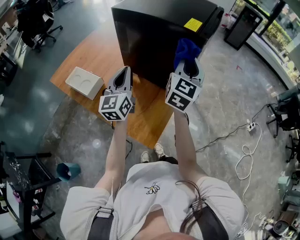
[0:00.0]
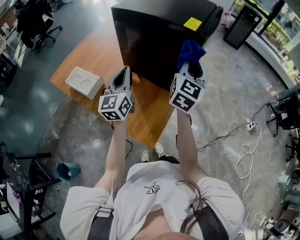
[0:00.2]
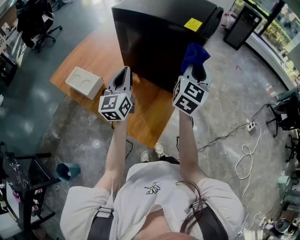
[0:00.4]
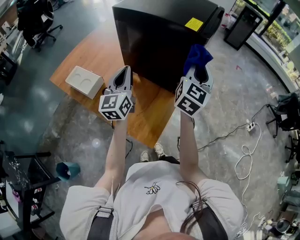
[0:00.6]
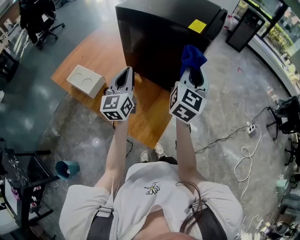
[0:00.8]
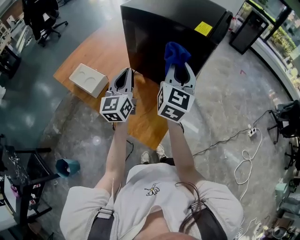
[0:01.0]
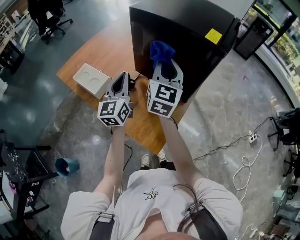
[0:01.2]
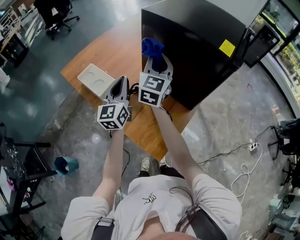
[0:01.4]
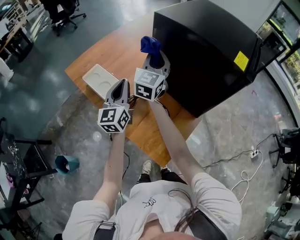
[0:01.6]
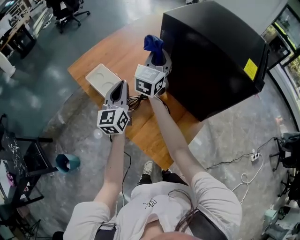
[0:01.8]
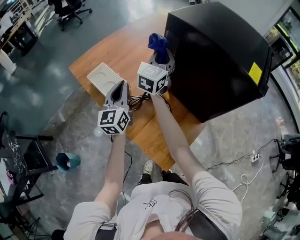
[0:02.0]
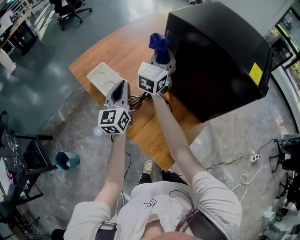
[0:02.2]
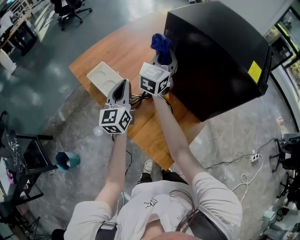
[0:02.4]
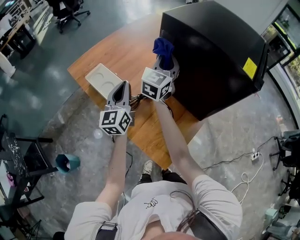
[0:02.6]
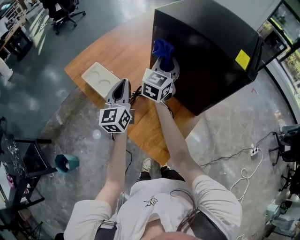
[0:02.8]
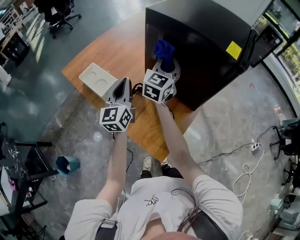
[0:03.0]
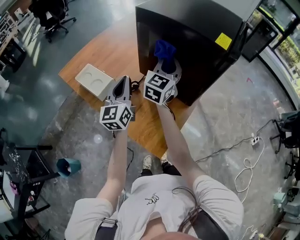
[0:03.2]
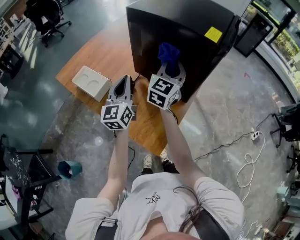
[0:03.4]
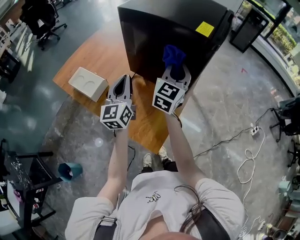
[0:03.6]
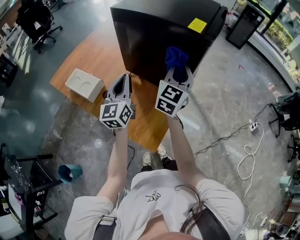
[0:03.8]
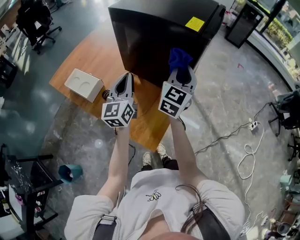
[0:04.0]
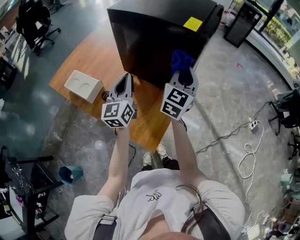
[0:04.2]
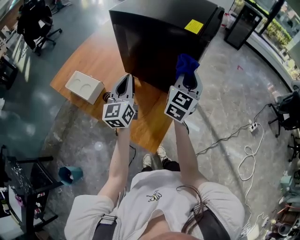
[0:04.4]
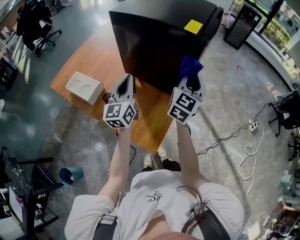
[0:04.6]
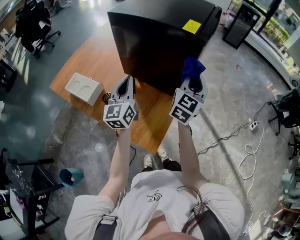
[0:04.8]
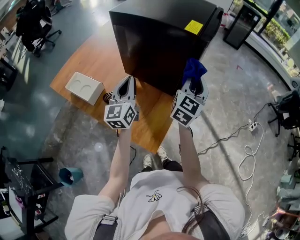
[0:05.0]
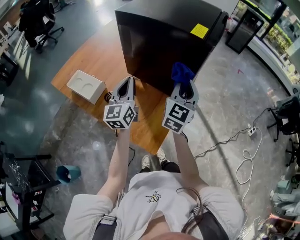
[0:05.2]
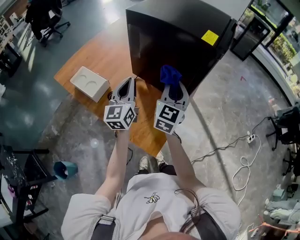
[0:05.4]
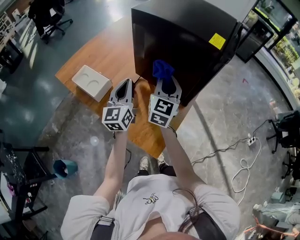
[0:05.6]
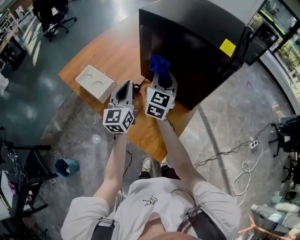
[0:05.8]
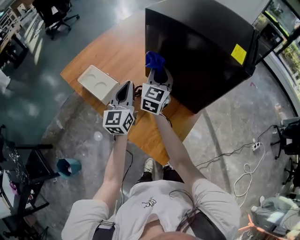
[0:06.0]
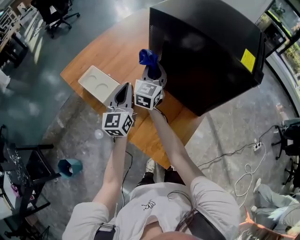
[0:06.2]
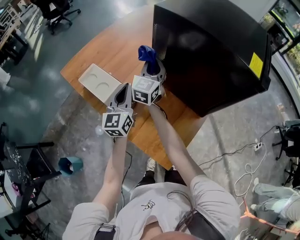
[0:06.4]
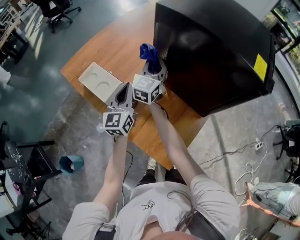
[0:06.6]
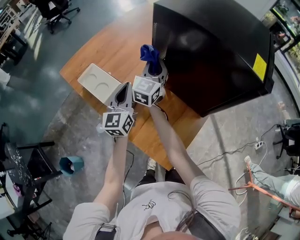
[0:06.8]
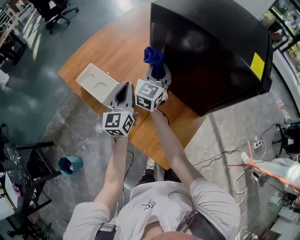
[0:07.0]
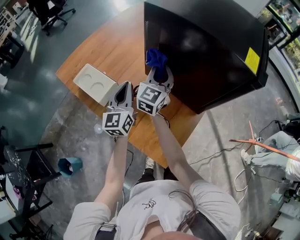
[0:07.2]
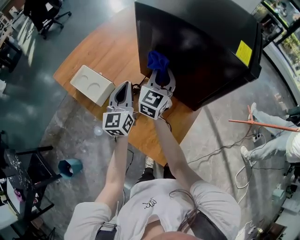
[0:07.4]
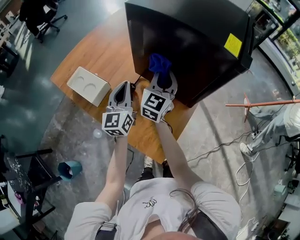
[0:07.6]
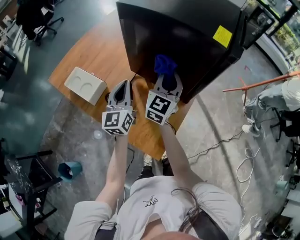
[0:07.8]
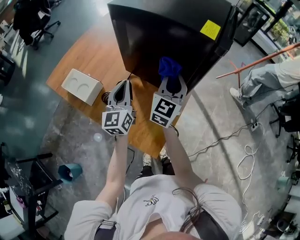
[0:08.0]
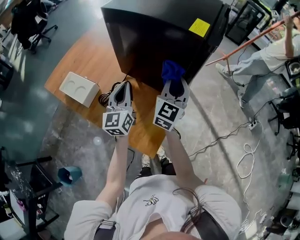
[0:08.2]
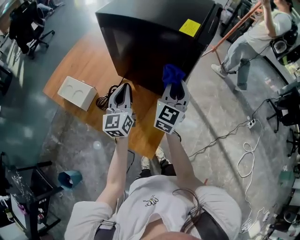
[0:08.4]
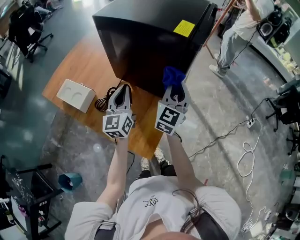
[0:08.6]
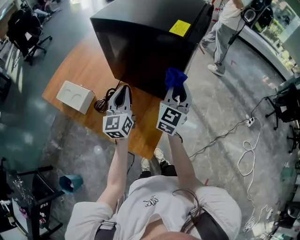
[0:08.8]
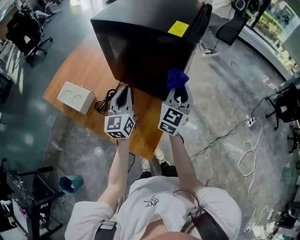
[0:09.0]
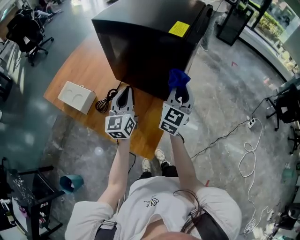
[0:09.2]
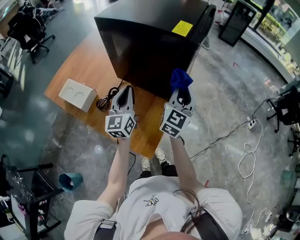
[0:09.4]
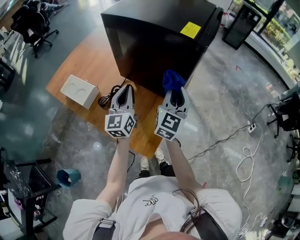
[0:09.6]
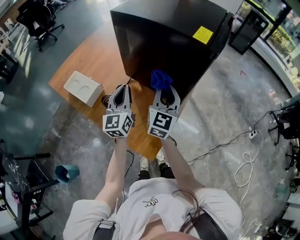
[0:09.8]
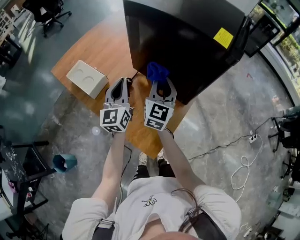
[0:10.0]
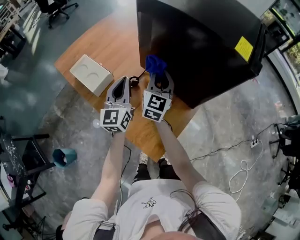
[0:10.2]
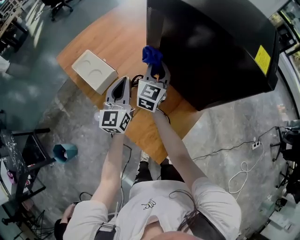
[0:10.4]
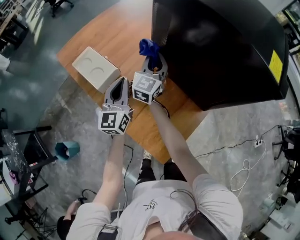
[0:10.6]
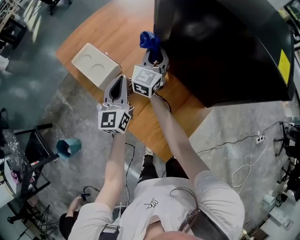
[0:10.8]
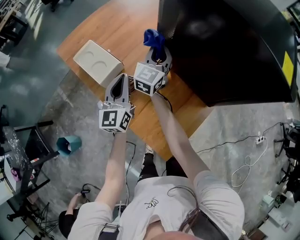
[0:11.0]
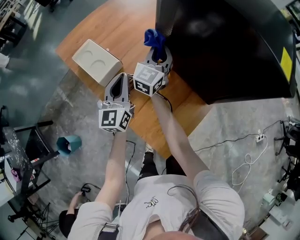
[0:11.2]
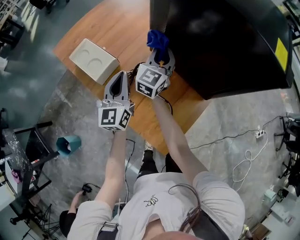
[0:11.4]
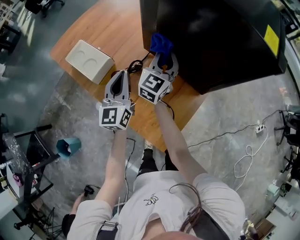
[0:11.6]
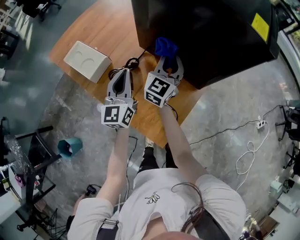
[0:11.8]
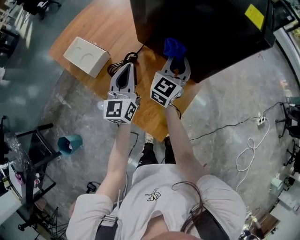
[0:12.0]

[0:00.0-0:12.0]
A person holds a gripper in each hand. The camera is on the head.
0:00.0 to 0:01.6: The left gripper heads to the left, covering about 15 cm; the right gripper shifts roughly 30 cm to the left.
0:01.6 to 0:03.0: The right gripper is displaced to the right by roughly 10 cm.
0:03.0 to 0:04.4: The right gripper shifts about 20 cm to the right. The left gripper travels to the right by roughly 10 cm.
0:04.4 to 0:06.0: The right gripper travels to the left by roughly 25 cm, and turns by about 20 degrees. The left gripper shifts approximately 10 cm to the left.
0:06.0 to 0:07.6: The right gripper shifts roughly 5 cm to the right.
0:07.6 to 0:09.0: The left gripper travels to the right by roughly 10 cm, while the right gripper goes about 20 cm to the right.
0:09.0 to 0:10.4: The left gripper moves to the left, some 15 cm, while the right gripper shifts approximately 30 cm to the left, and swivels about 20 degrees.
0:10.4 to 0:12.0: The left gripper travels to the right by some 5 cm, while the right gripper is displaced to the right and backward by approximately 15 cm.

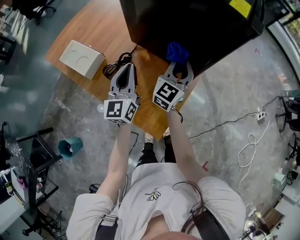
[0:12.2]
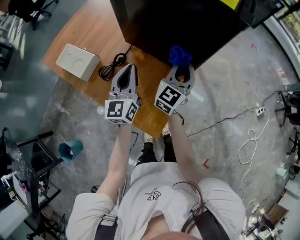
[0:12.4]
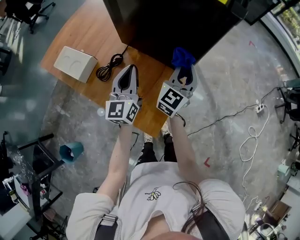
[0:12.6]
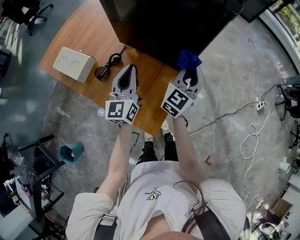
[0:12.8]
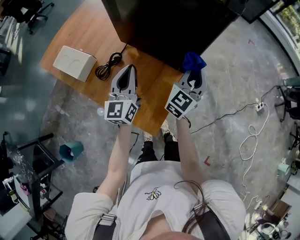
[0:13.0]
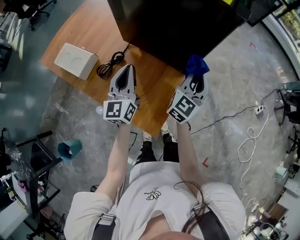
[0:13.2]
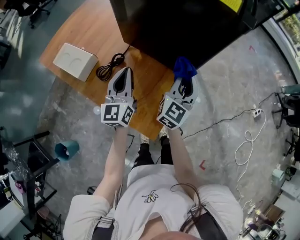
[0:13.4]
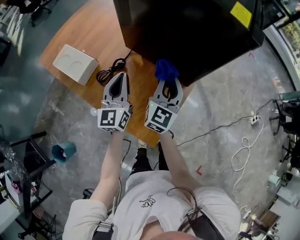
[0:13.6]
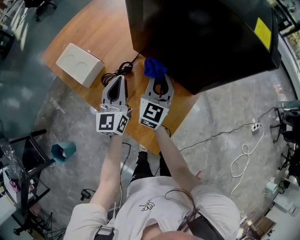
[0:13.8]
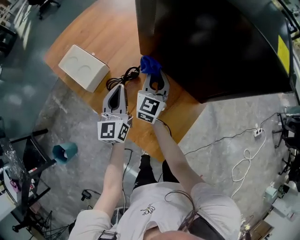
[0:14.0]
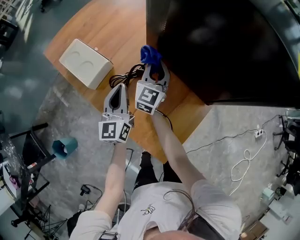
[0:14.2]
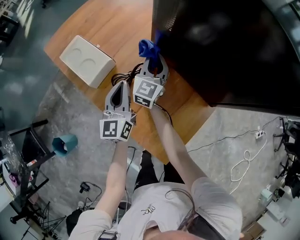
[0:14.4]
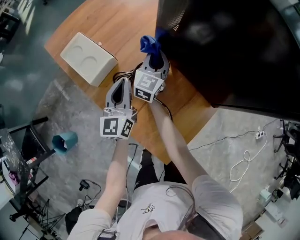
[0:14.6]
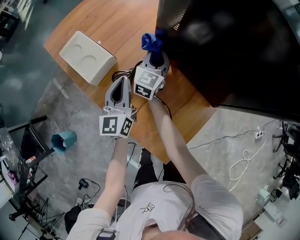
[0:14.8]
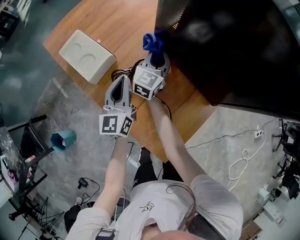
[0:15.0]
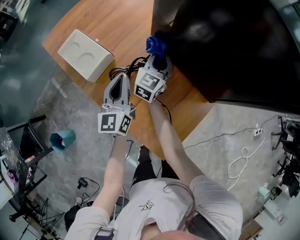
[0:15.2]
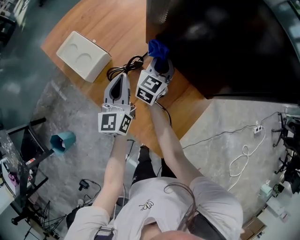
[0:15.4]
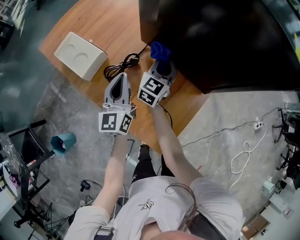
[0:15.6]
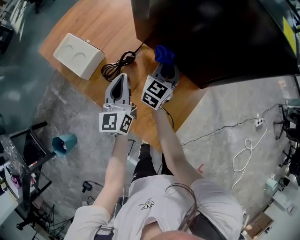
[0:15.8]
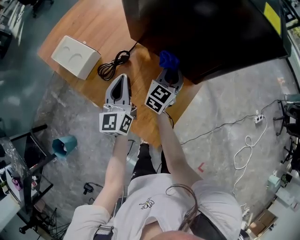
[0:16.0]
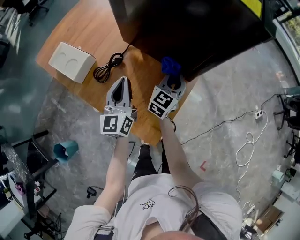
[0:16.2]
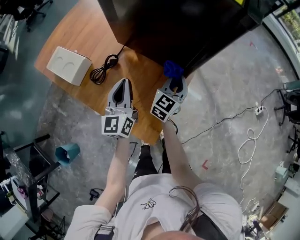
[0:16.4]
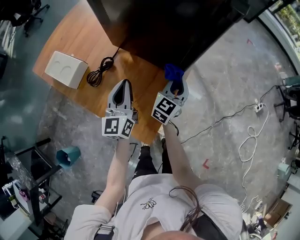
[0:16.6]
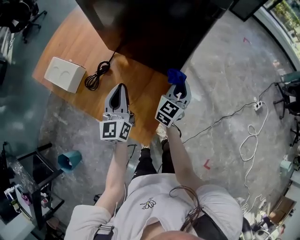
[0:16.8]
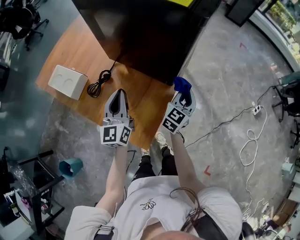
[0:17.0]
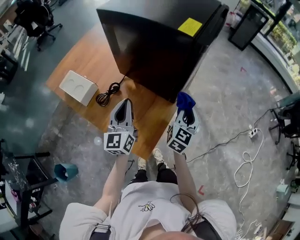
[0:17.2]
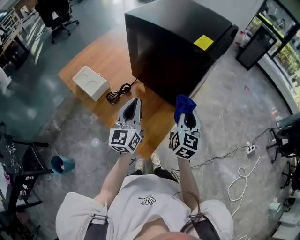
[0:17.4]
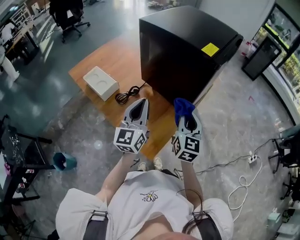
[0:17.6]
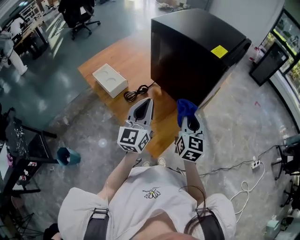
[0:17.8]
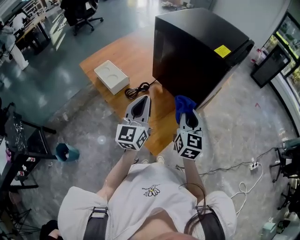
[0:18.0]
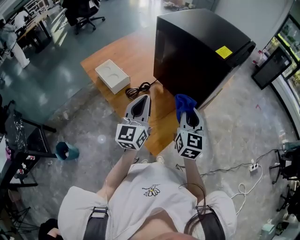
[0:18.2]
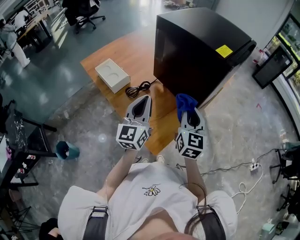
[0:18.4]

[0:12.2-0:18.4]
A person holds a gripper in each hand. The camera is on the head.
0:12.2 to 0:13.8: The left gripper ends up roughly 5 cm from where it was, while the right gripper goes about 10 cm to the left.
0:13.8 to 0:15.4: The right gripper travels forward and downward by about 10 cm.
0:15.4 to 0:16.8: The left gripper is displaced to the right by roughly 15 cm; the right gripper moves to the right, approximately 30 cm.
0:16.8 to 0:18.4: Both grippers travel together upward, some 15 cm. The right gripper turns by about 40 degrees.

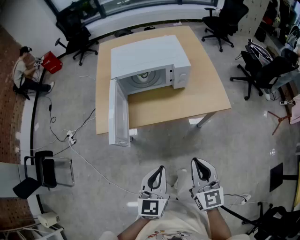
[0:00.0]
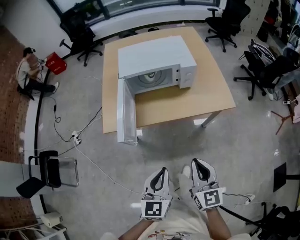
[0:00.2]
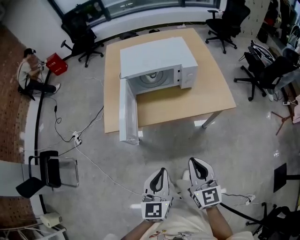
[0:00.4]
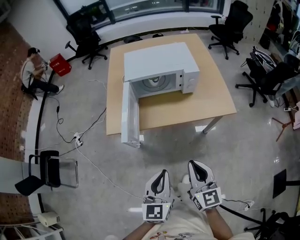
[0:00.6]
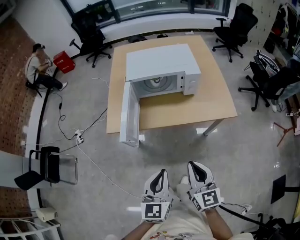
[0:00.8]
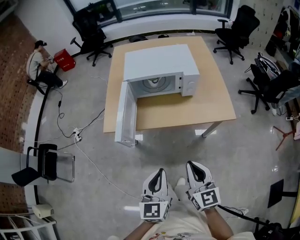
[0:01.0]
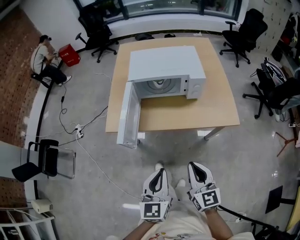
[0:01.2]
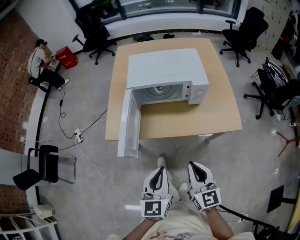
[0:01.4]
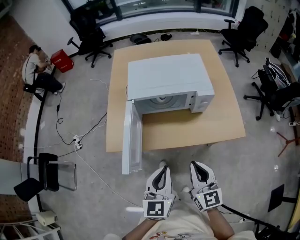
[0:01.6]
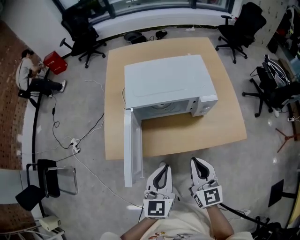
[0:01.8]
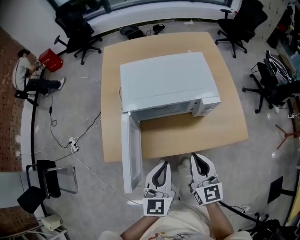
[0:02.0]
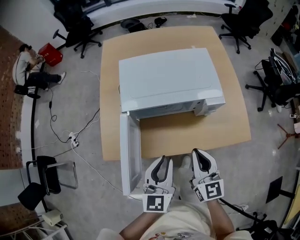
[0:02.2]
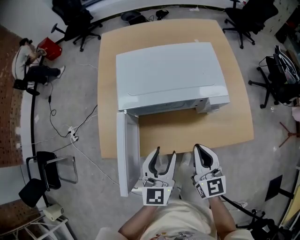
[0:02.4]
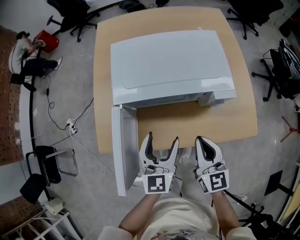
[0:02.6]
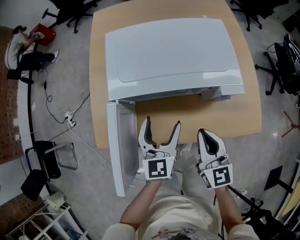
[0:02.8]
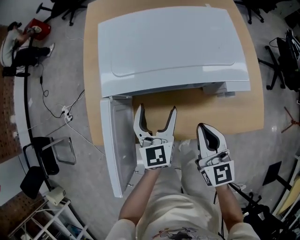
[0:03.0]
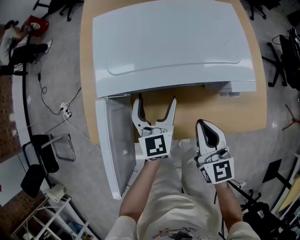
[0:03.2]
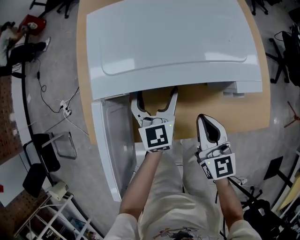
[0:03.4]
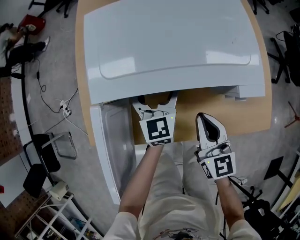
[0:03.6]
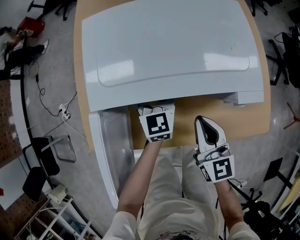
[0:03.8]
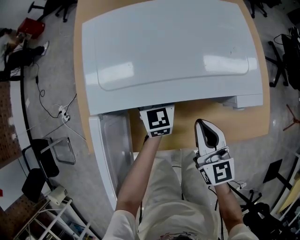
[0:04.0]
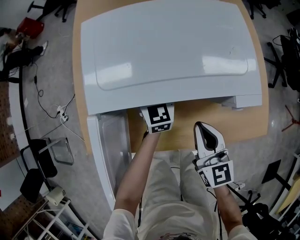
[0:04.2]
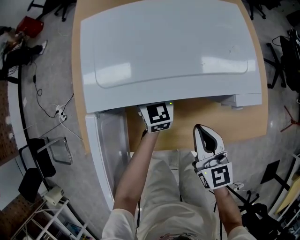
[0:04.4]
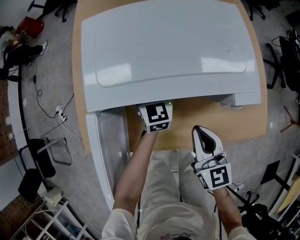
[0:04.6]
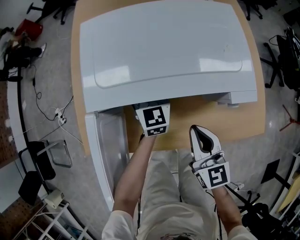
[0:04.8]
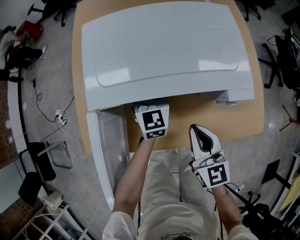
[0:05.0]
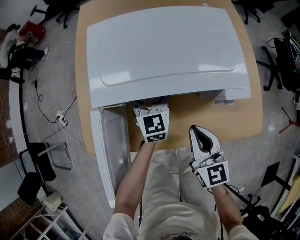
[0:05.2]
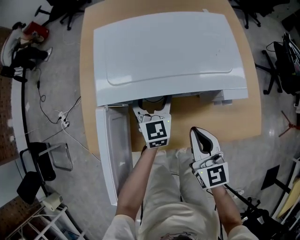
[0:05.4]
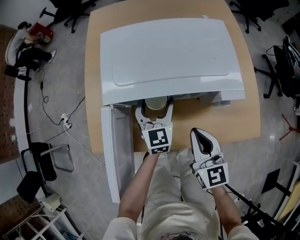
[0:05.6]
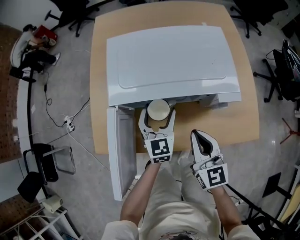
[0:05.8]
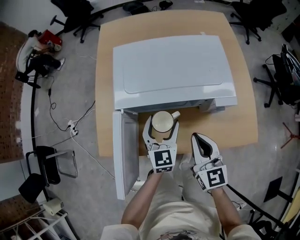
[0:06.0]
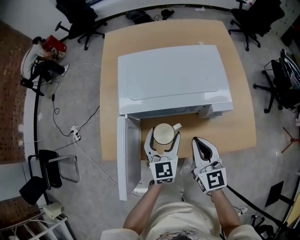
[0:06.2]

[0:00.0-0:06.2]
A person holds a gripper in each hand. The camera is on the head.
0:00.0 to 0:01.6: Both grippers travel together forward, roughly 15 cm.
0:01.6 to 0:03.2: Both grippers travel together forward and downward, about 30 cm. The left gripper opens its fingers.
0:03.2 to 0:04.6: The left gripper travels forward and downward by roughly 15 cm.
0:04.6 to 0:06.2: The right gripper heads upward, covering some 10 cm. The left gripper goes approximately 20 cm backward and upward.
